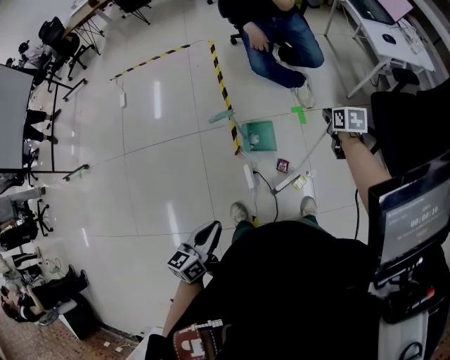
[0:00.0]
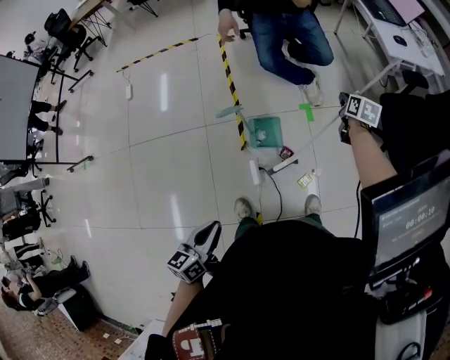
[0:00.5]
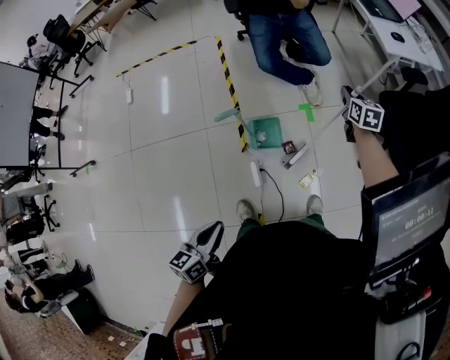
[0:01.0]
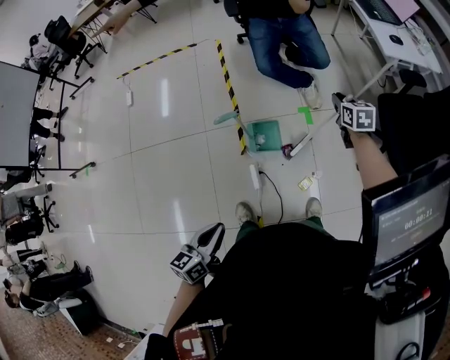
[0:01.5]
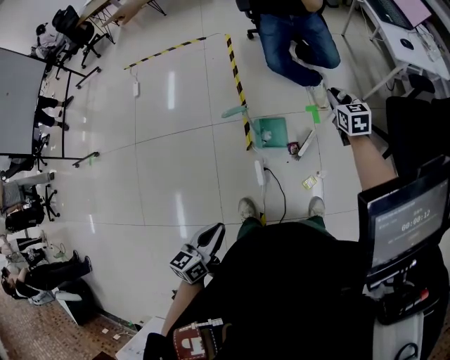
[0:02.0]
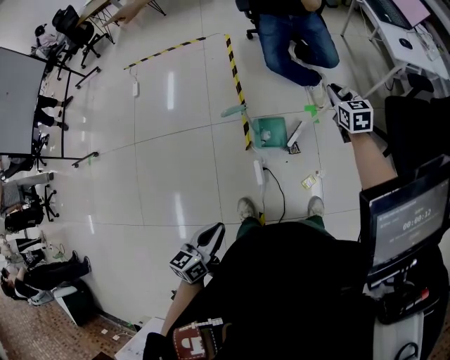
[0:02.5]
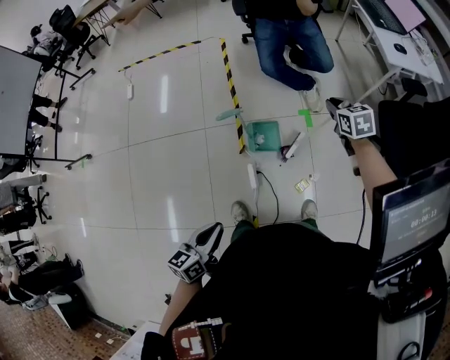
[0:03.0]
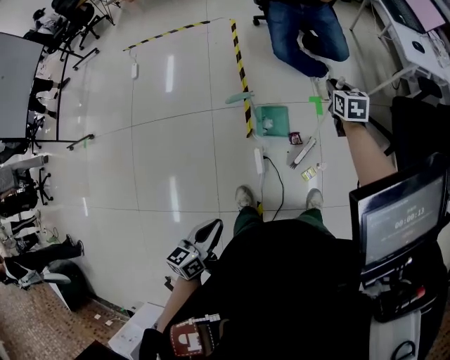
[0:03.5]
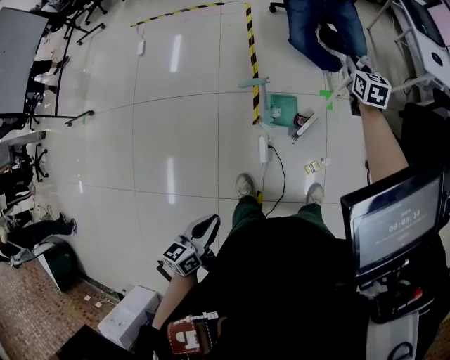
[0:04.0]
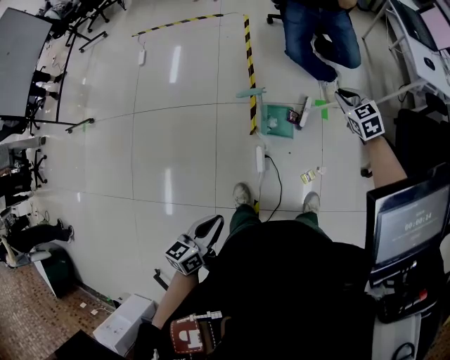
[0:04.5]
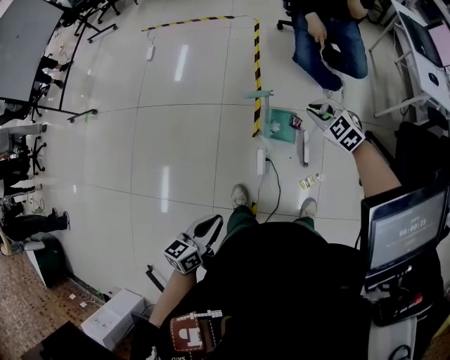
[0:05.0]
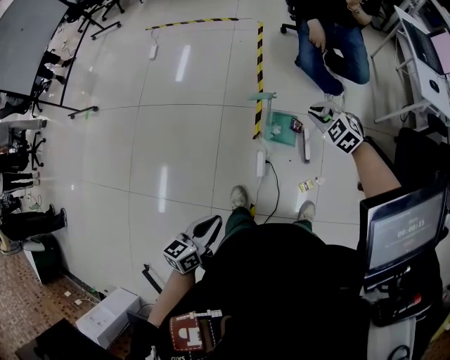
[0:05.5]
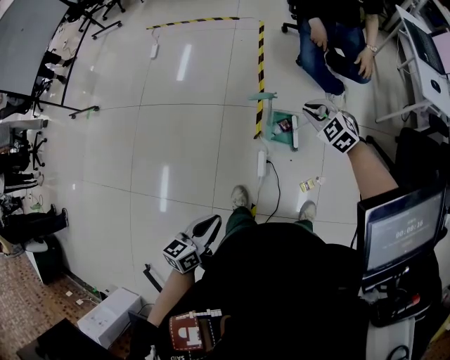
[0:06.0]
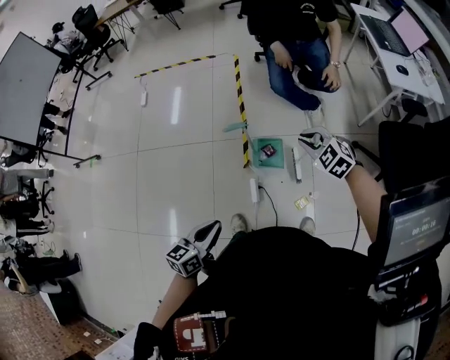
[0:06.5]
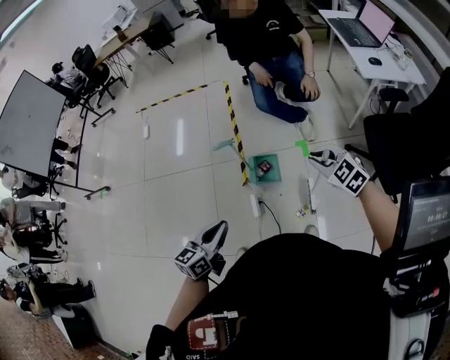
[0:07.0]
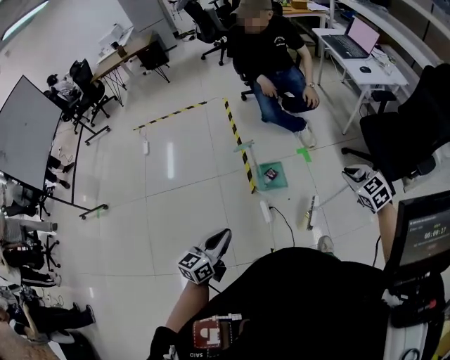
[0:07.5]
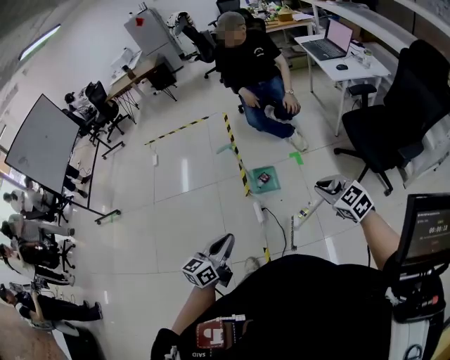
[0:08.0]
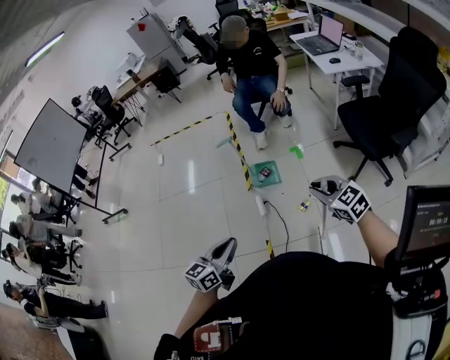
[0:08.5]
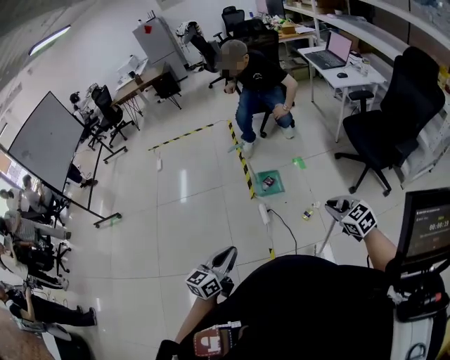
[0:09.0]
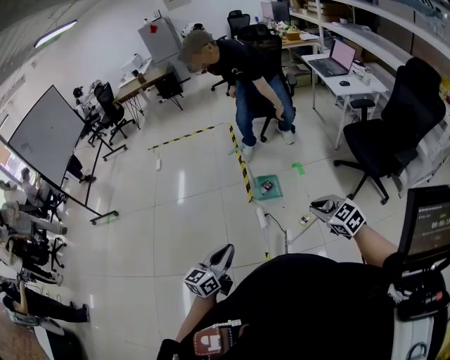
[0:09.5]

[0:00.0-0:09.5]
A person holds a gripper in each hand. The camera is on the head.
0:00.0 to 0:02.0: The right gripper shifts approximately 10 cm to the left and upward, and rotates approximately 30 degrees.
0:02.0 to 0:04.0: The left gripper ends up about 5 cm from where it was; the right gripper shifts roughly 10 cm forward and to the left.
0:04.0 to 0:05.5: The right gripper moves to the left and backward, some 20 cm, and changes its angle by about 60 degrees.
0:05.5 to 0:07.5: The left gripper shifts approximately 10 cm upward, reaches roughly 15 cm to the right, then returns, and turns by roughly 30 degrees, while the right gripper shifts approximately 35 cm backward, to the right and upward, and swivels some 40 degrees.
0:07.5 to 0:09.5: The two grippers go roughly 25 cm backward.

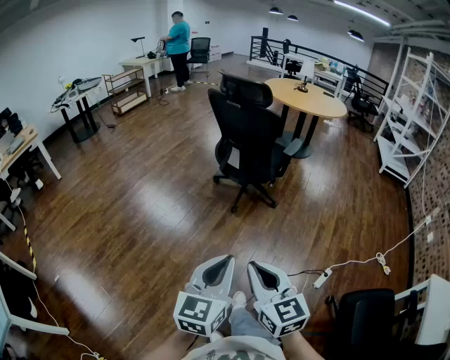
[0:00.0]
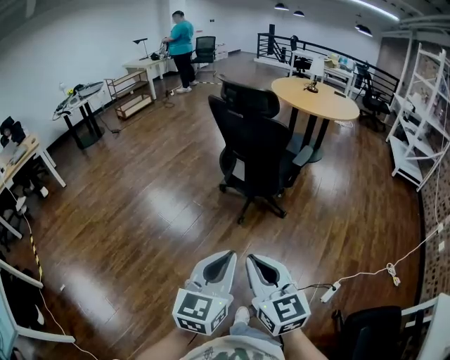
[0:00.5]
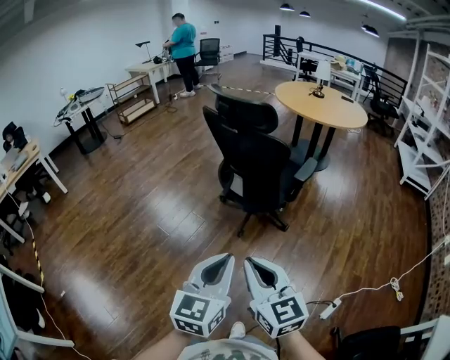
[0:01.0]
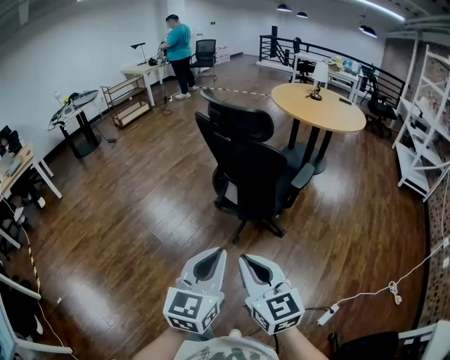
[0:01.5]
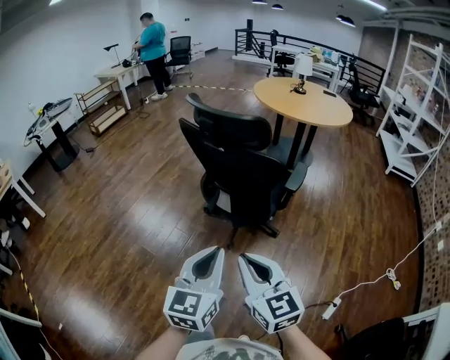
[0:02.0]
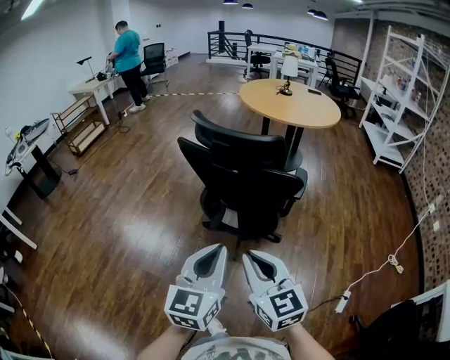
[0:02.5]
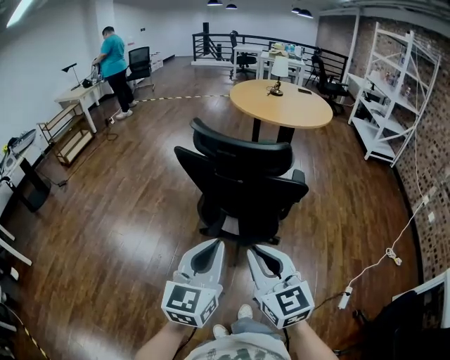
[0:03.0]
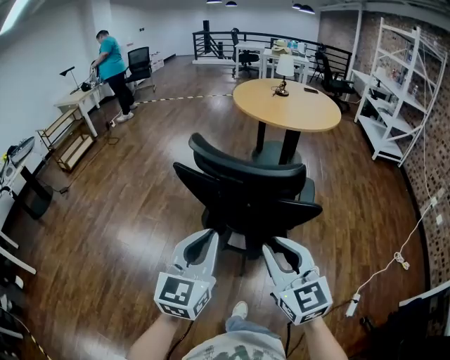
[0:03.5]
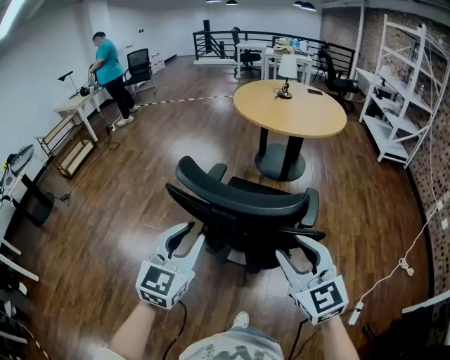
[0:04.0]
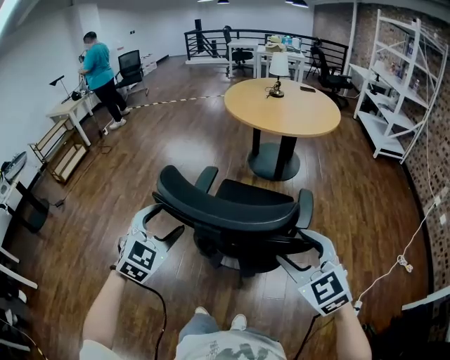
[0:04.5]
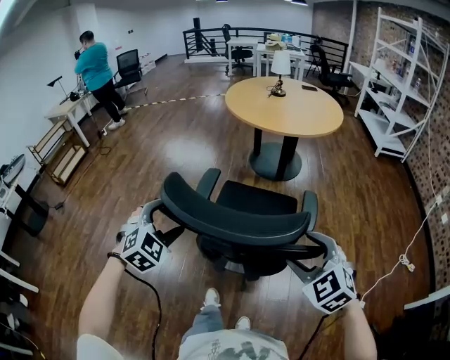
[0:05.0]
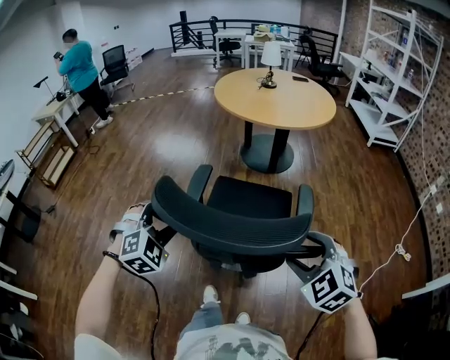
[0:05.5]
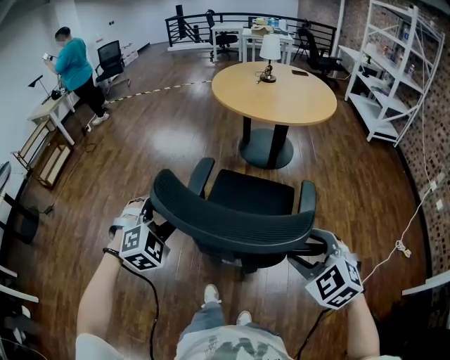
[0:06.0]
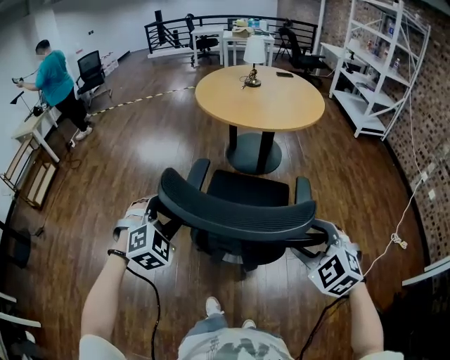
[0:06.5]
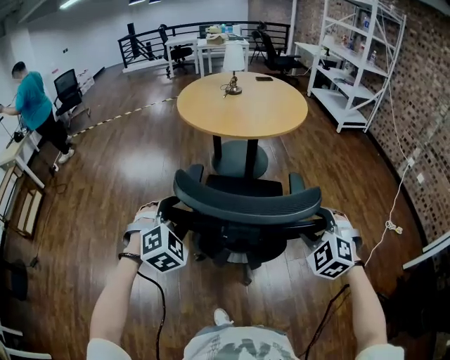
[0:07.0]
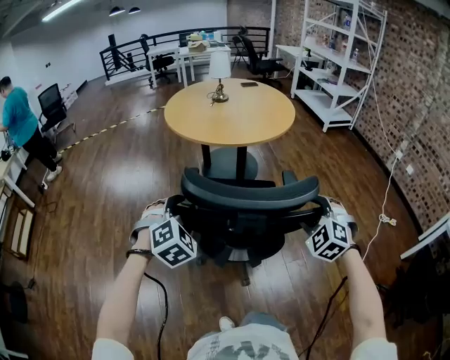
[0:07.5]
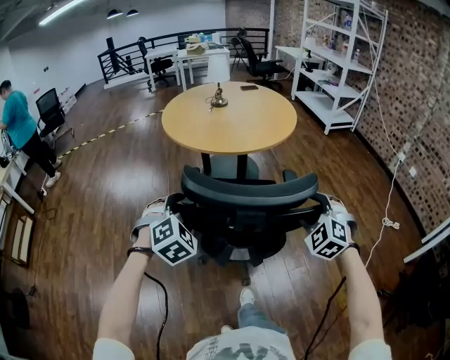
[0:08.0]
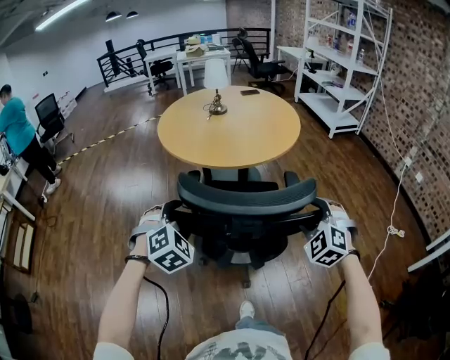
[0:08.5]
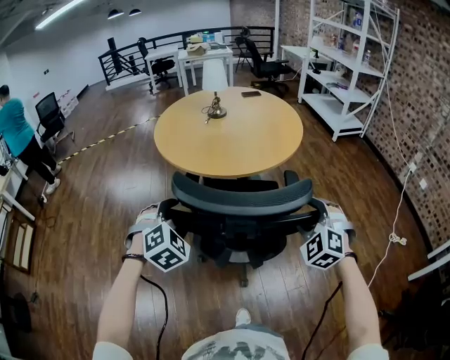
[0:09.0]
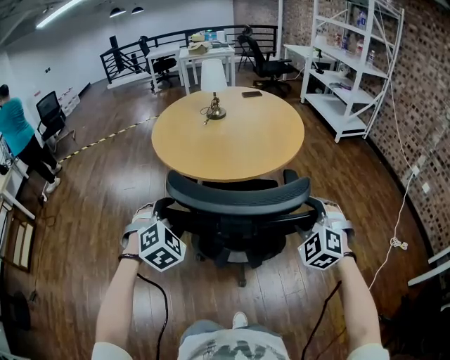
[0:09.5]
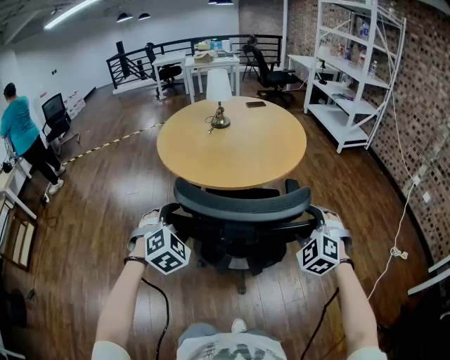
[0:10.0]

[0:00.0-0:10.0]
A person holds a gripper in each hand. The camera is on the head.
0:00.0 to 0:02.0: Both grippers move forward, some 40 cm.
0:02.0 to 0:04.0: The right gripper heads forward, covering some 30 cm, changes its angle by approximately 20 degrees, and opens. The left gripper moves forward and to the left, some 40 cm, and turns by some 30 degrees.
0:04.0 to 0:06.0: The left gripper goes some 20 cm forward and downward, rolls clockwise, seen from behind, by some 50 degrees, and opens its fingers. The right gripper is displaced forward and downward by some 10 cm, and tips its fingers downward by approximately 30 degrees.
0:06.0 to 0:08.0: The two grippers go about 25 cm forward. The right gripper turns by roughly 30 degrees.
0:08.0 to 0:10.0: The two grippers go approximately 15 cm forward.

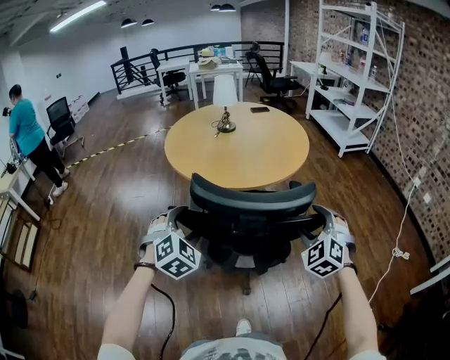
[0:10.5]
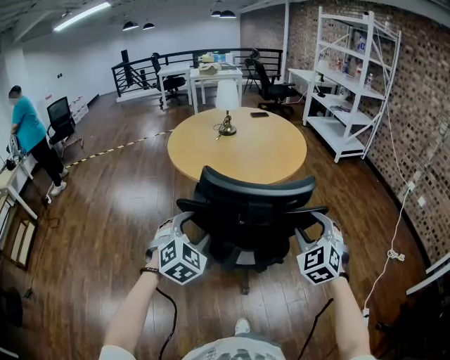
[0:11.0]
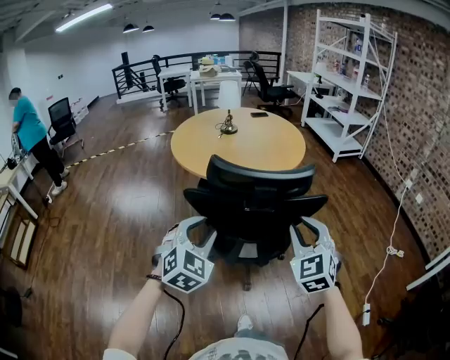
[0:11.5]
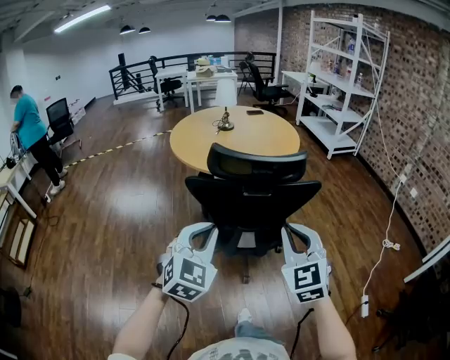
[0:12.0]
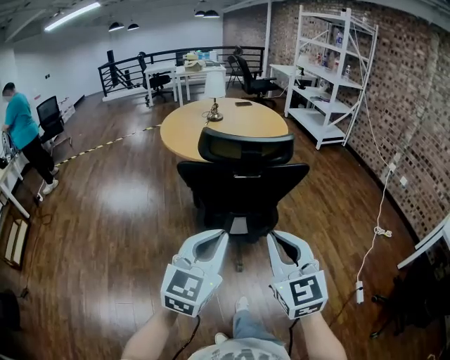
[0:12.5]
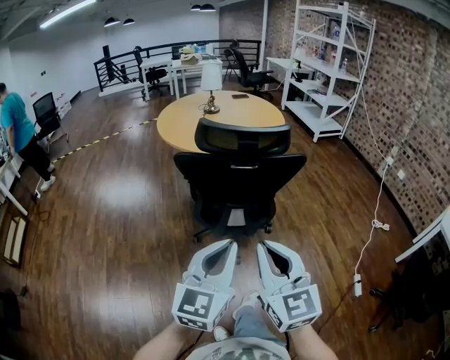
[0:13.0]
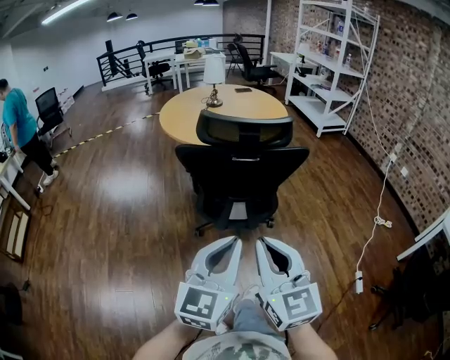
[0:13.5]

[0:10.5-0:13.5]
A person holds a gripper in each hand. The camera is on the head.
0:10.5 to 0:12.0: The right gripper shifts roughly 25 cm backward and to the left, changes its angle by approximately 30 degrees, and closes up. Meanwhile the left gripper shifts some 20 cm backward, swivels some 30 degrees, and closes its fingers.
0:12.0 to 0:13.5: The right gripper moves backward, some 15 cm, and rotates approximately 30 degrees. Meanwhile the left gripper goes approximately 15 cm backward and to the right, and changes its angle by about 40 degrees.

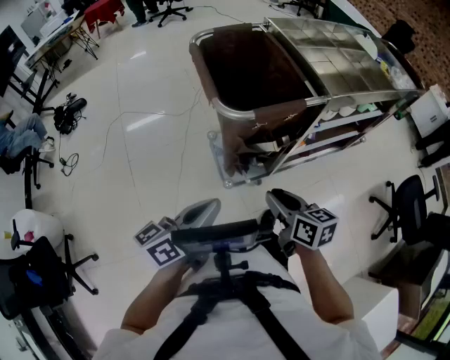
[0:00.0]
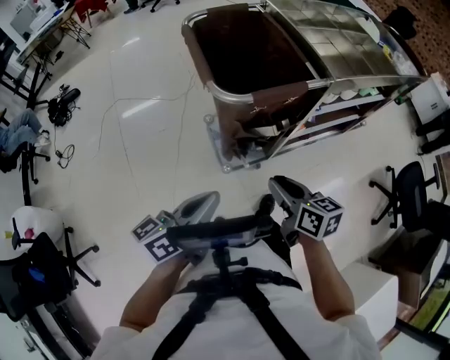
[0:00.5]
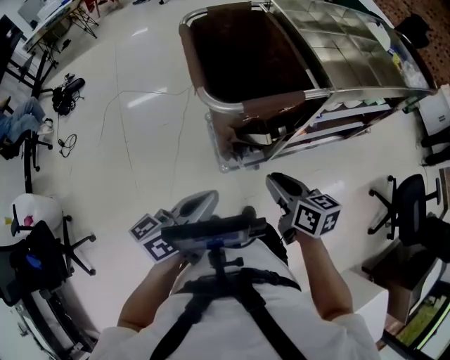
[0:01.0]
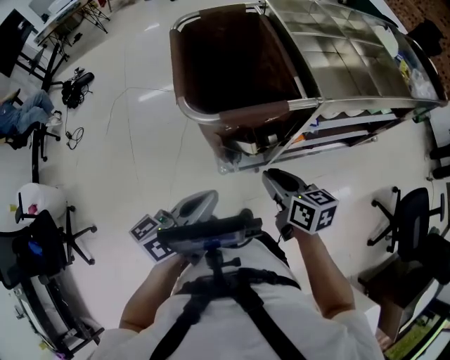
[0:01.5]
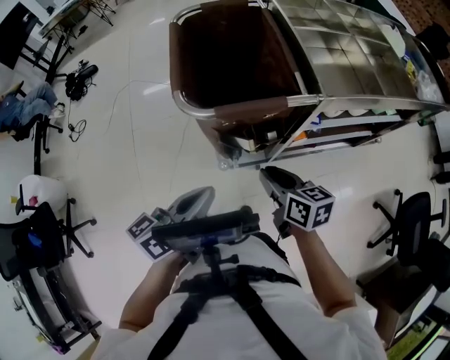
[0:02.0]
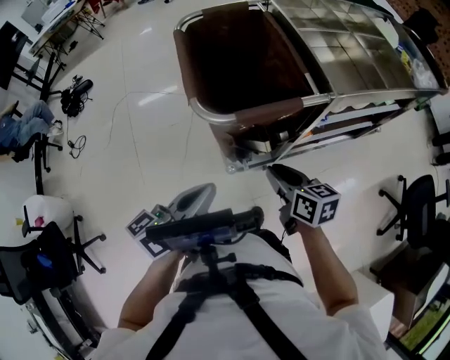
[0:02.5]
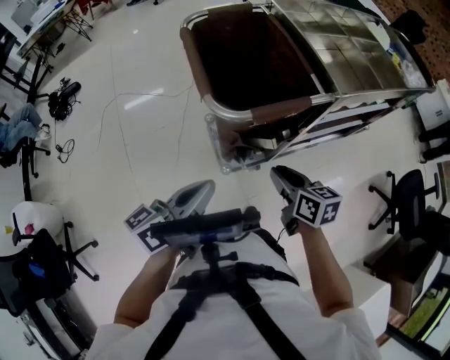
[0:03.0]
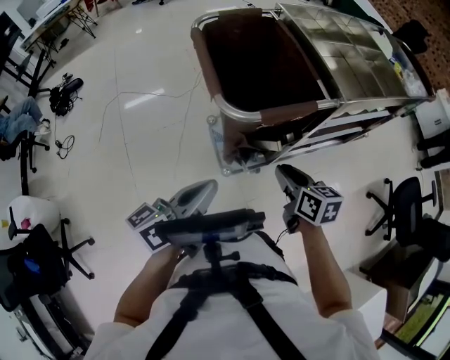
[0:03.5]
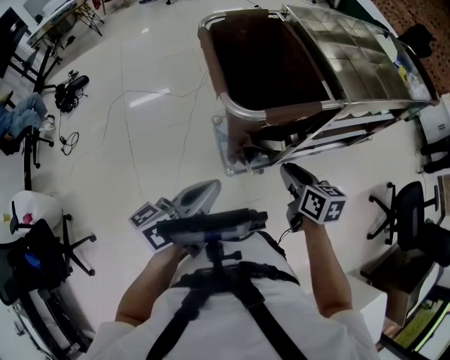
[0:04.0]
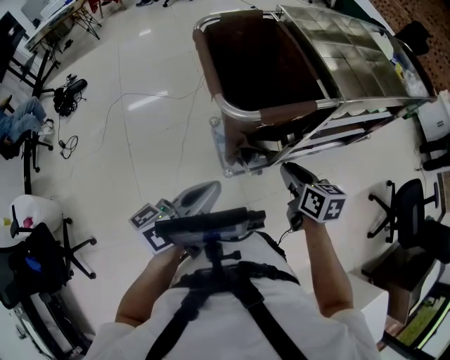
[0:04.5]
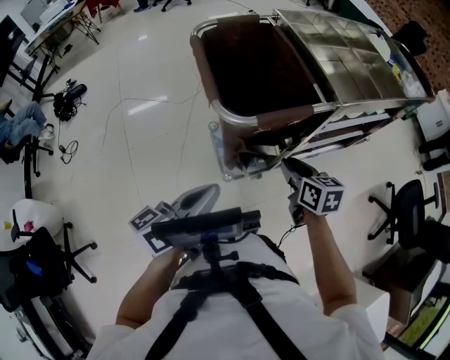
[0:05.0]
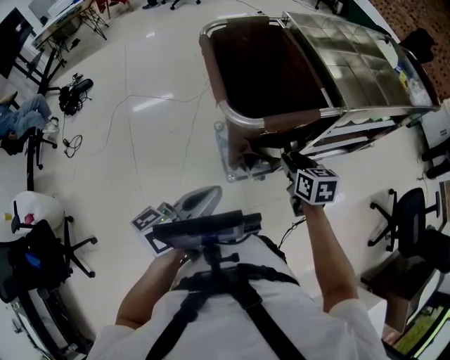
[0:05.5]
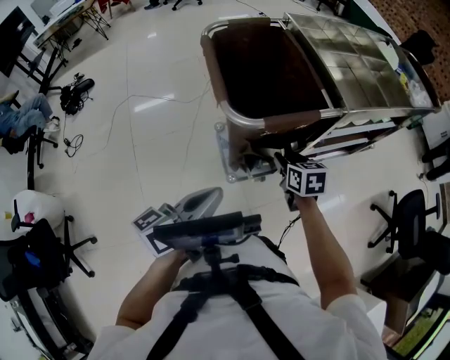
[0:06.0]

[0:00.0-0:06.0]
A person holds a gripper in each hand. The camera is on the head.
0:00.0 to 0:02.0: The left gripper is displaced to the right and forward by roughly 10 cm. Meanwhile the right gripper goes approximately 10 cm forward and to the right.
0:02.0 to 0:04.0: The left gripper travels to the left by some 10 cm.
0:04.0 to 0:06.0: The right gripper goes roughly 10 cm forward and downward.
